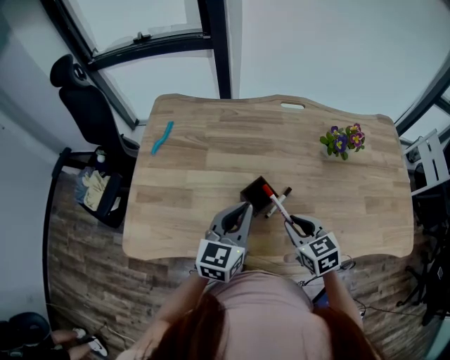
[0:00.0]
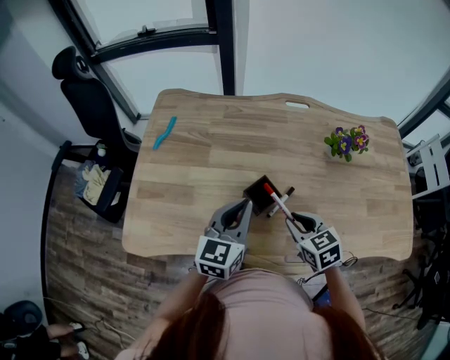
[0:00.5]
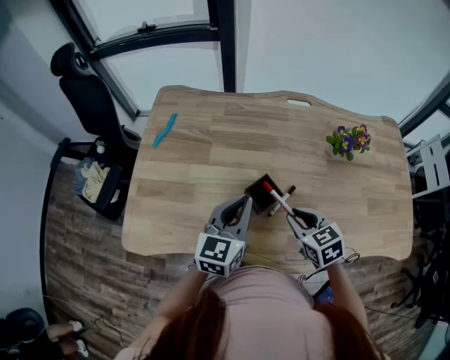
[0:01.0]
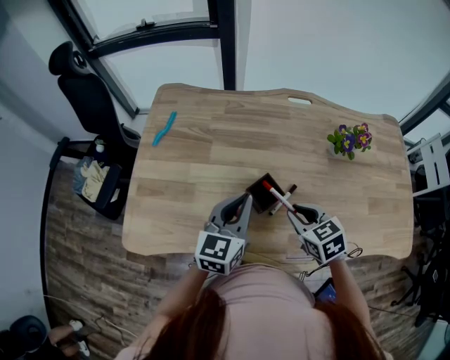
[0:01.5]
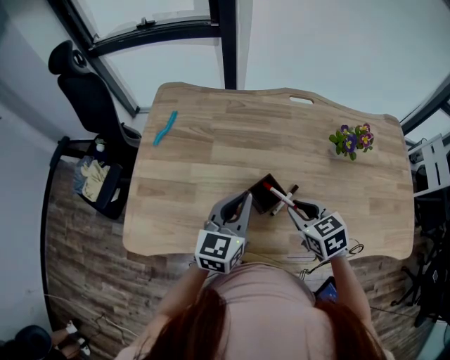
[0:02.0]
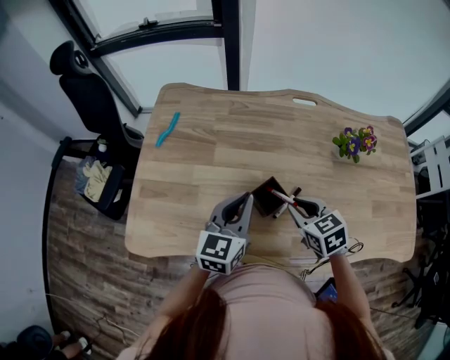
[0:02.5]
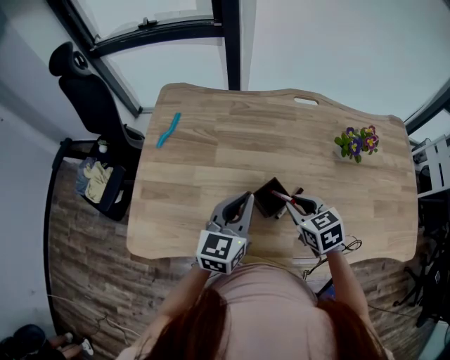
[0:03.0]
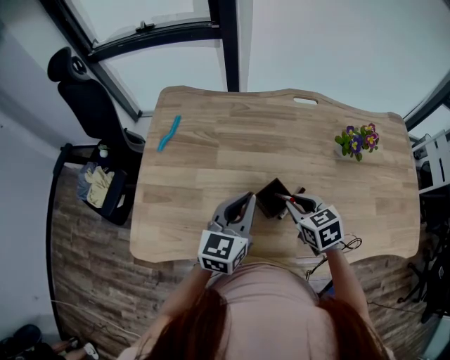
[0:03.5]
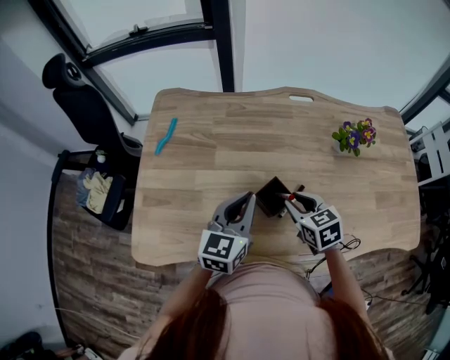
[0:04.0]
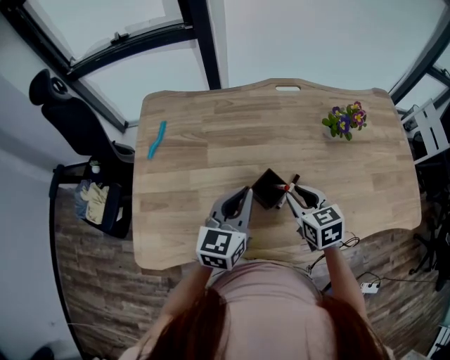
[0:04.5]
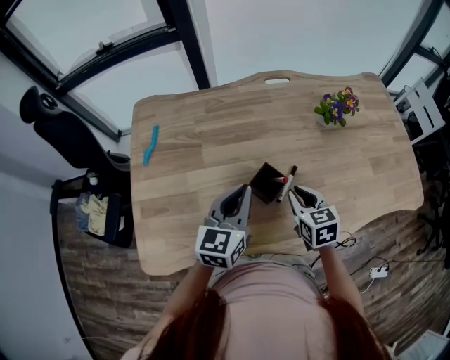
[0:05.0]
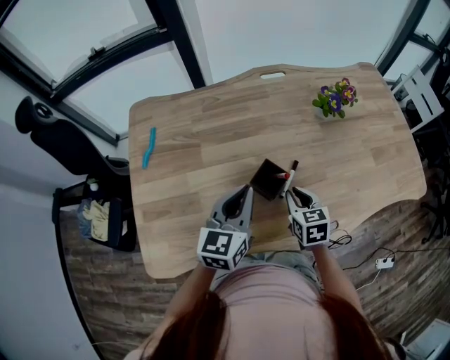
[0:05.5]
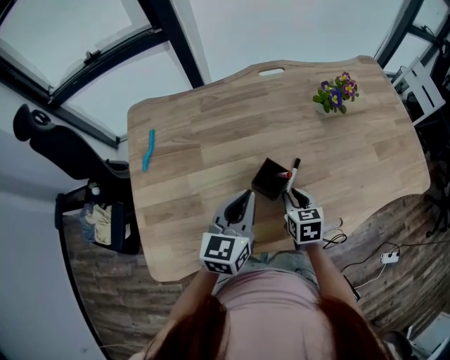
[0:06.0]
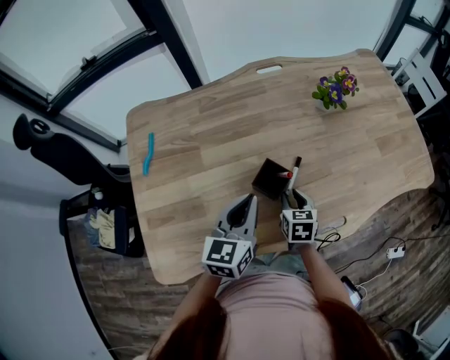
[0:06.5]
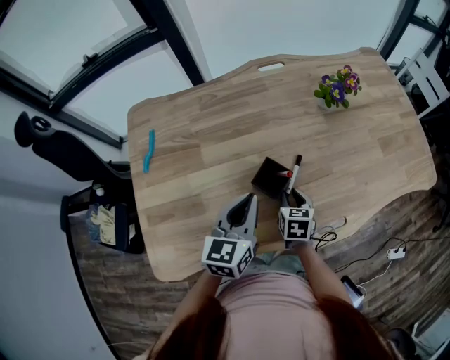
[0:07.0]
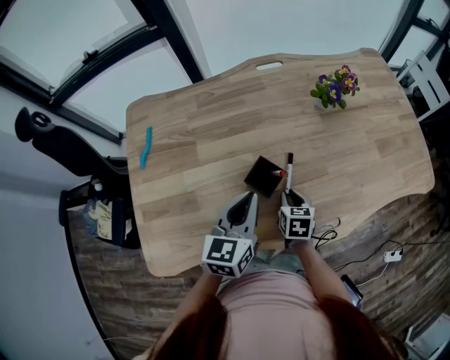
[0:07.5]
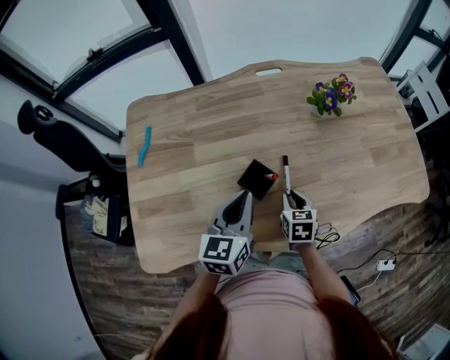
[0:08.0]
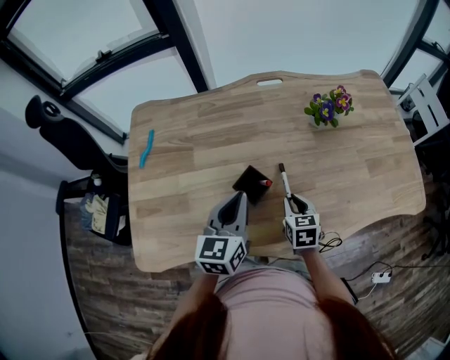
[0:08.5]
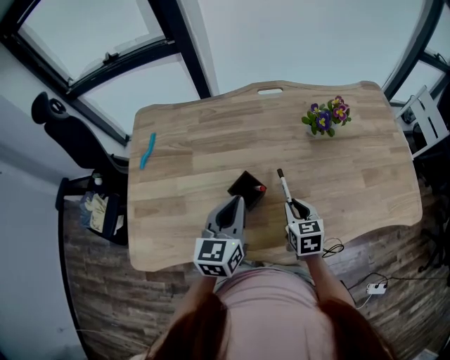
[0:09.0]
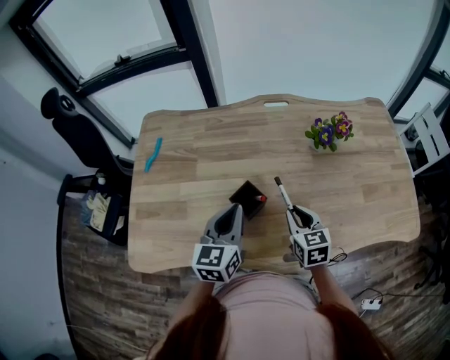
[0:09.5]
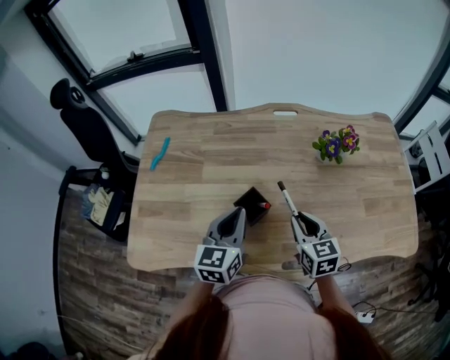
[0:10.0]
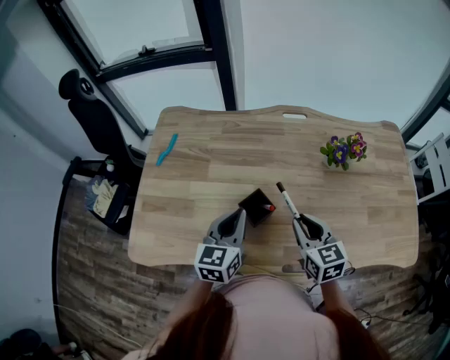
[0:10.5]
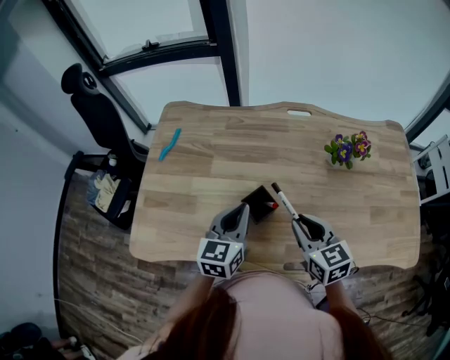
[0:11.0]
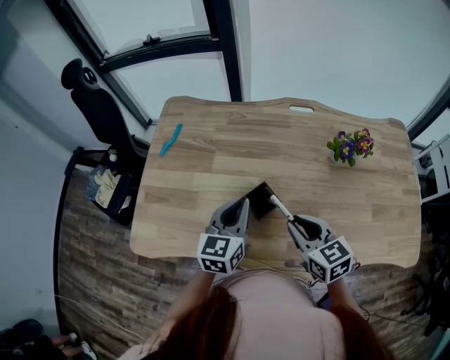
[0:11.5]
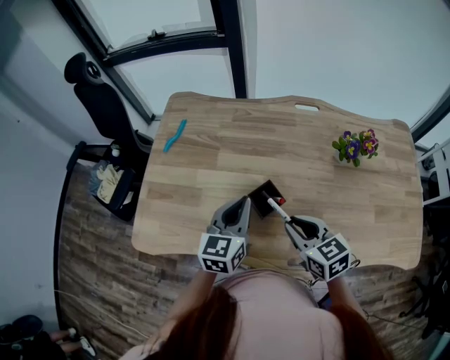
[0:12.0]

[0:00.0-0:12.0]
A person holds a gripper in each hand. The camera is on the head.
0:00.0 to 0:02.0: The grippers stay close to where they were, moving slightly.
0:02.0 to 0:04.0: There are only small adjustments of the grippers.
0:04.0 to 0:06.0: The right gripper travels downward by roughly 10 cm, and swivels roughly 30 degrees.
0:06.0 to 0:08.0: There are only small adjustments of the grippers.
0:08.0 to 0:10.0: The right gripper heads upward, covering roughly 15 cm, and swivels about 30 degrees.
0:10.0 to 0:12.0: The right gripper goes about 5 cm to the left, and changes its angle by approximately 20 degrees.

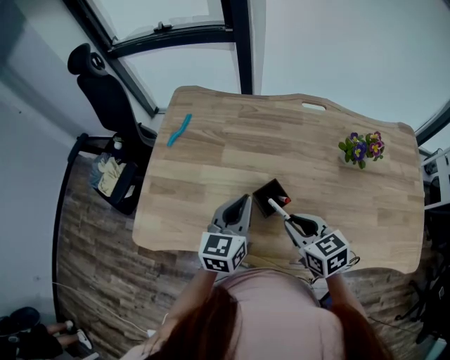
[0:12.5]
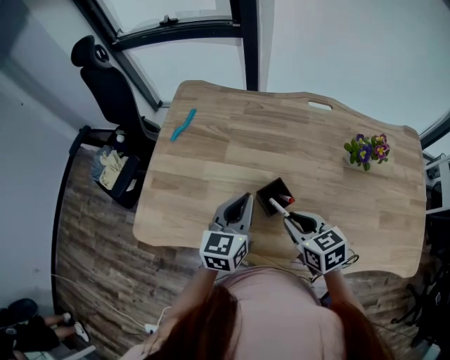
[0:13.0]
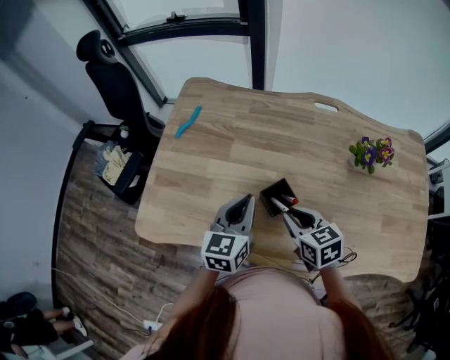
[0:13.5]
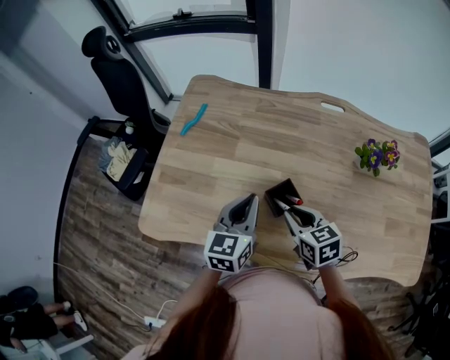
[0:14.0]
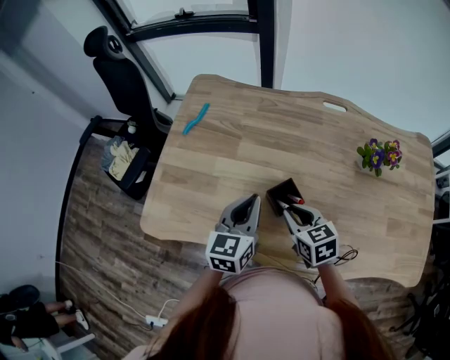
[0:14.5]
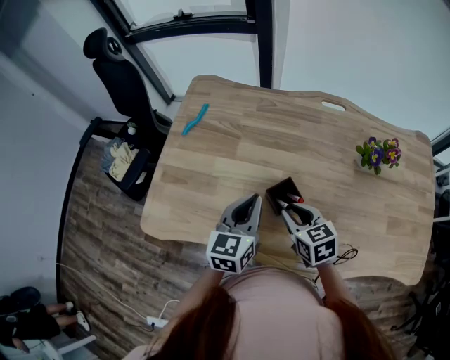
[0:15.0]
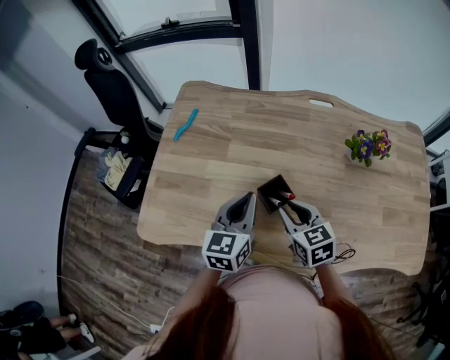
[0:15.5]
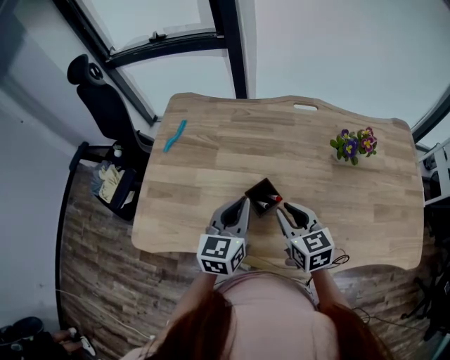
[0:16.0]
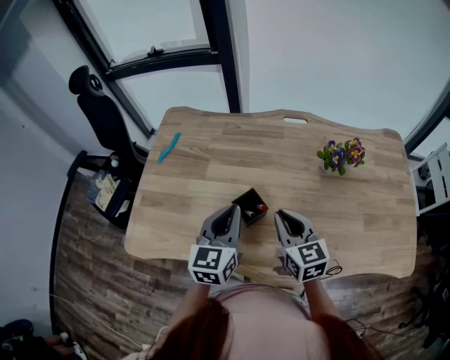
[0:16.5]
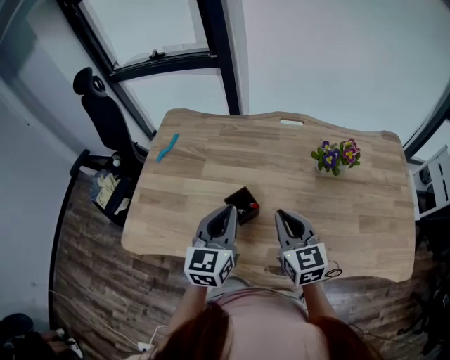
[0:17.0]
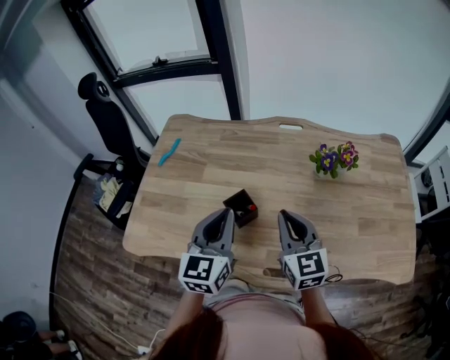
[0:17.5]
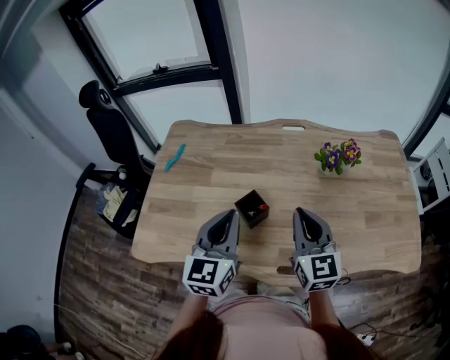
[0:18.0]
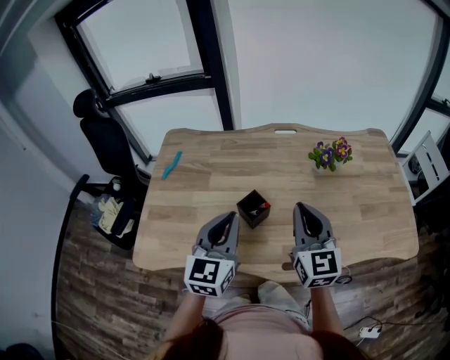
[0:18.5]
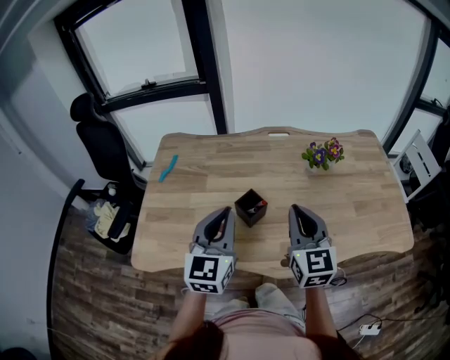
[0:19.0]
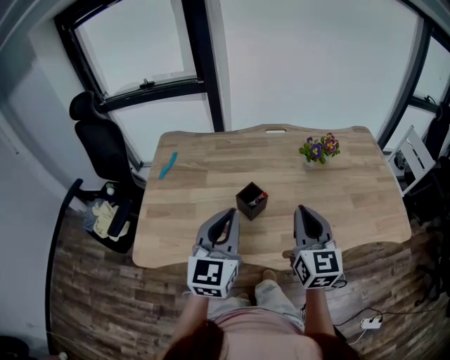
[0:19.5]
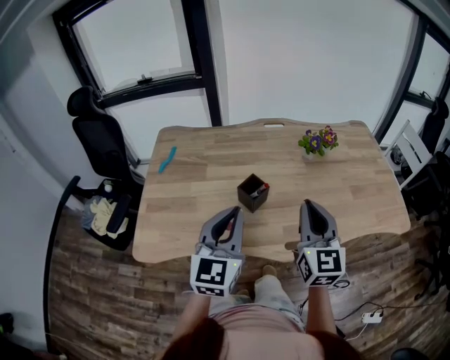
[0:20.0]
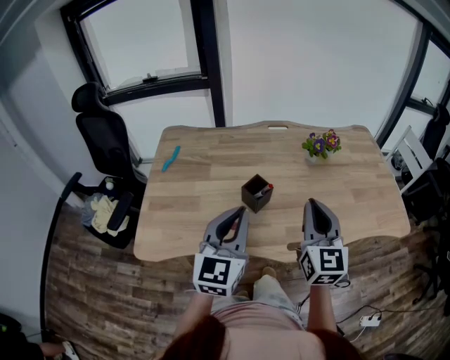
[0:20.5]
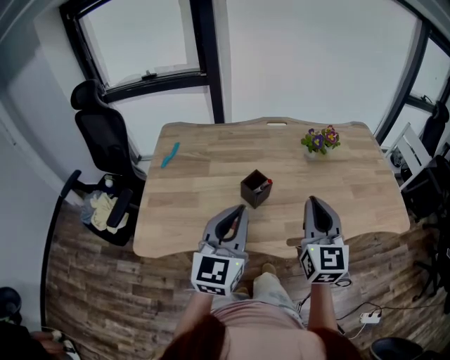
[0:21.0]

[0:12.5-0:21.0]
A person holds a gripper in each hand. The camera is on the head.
0:12.5 to 0:14.5: The right gripper shifts by roughly 5 cm.
0:14.5 to 0:16.5: The right gripper heads upward and to the right, covering some 10 cm, and turns by about 20 degrees. The left gripper heads upward and to the right, covering roughly 5 cm.
0:16.5 to 0:19.0: Both grippers move upward and backward, approximately 10 cm. The right gripper swivels approximately 30 degrees.
0:19.0 to 0:21.0: Both grippers travel together backward, some 10 cm.

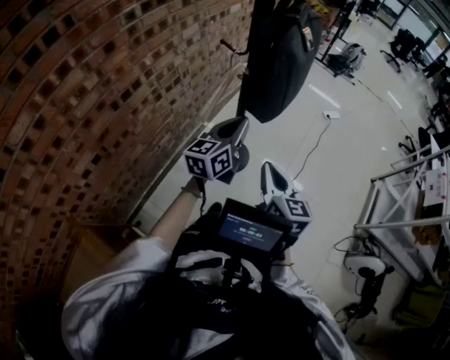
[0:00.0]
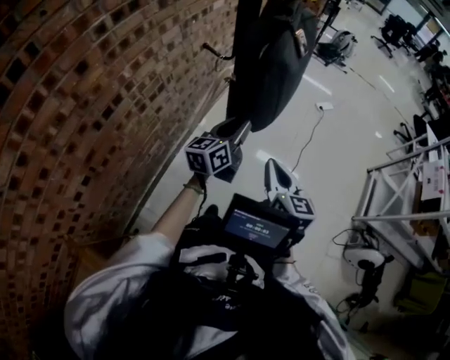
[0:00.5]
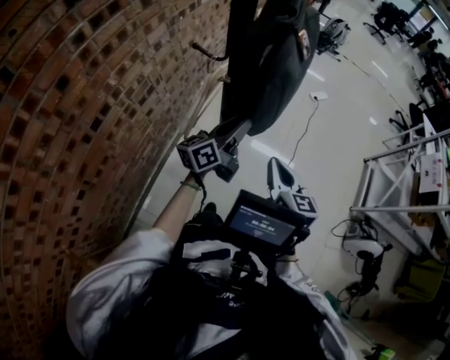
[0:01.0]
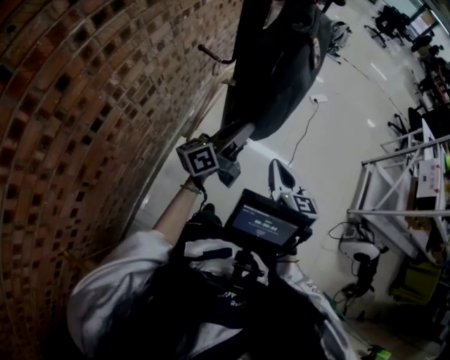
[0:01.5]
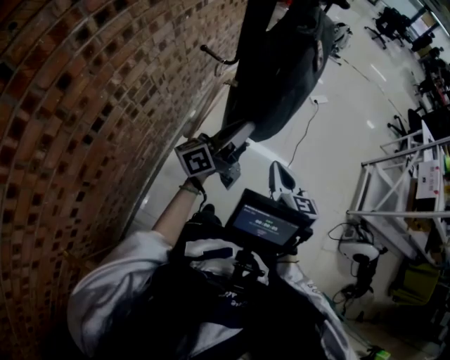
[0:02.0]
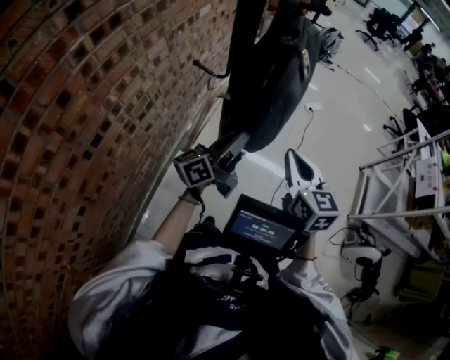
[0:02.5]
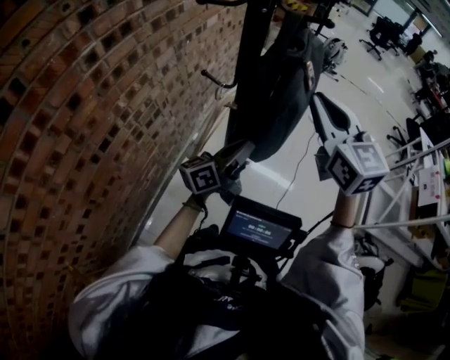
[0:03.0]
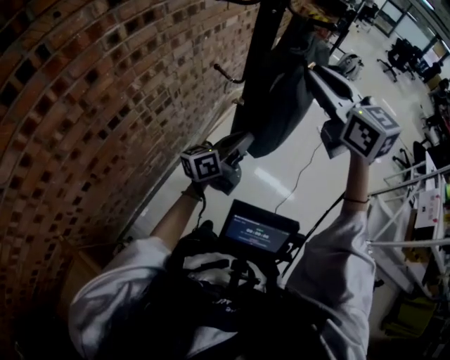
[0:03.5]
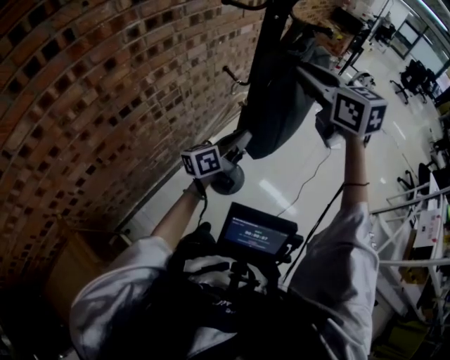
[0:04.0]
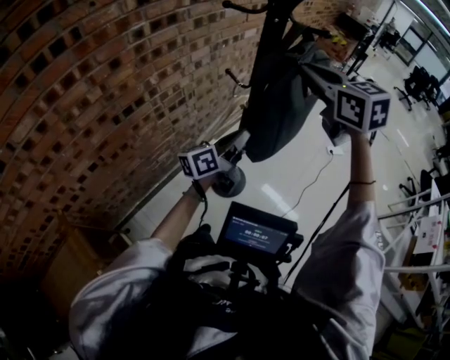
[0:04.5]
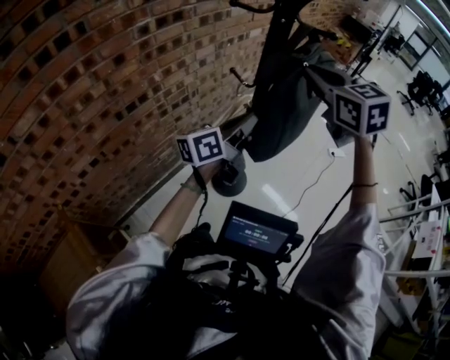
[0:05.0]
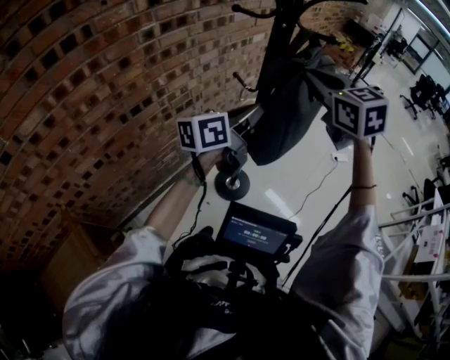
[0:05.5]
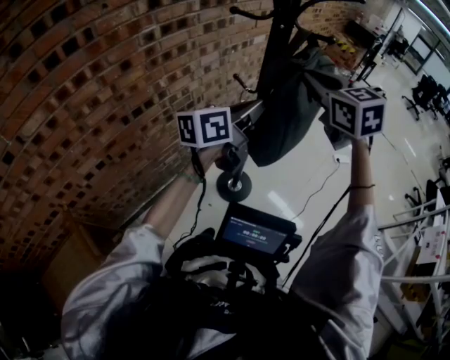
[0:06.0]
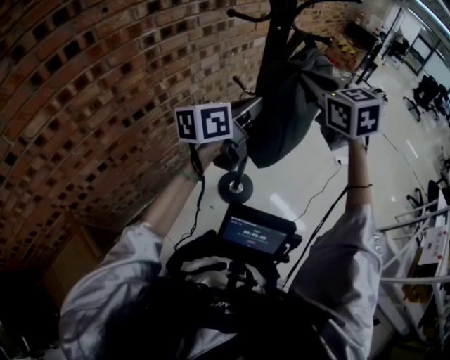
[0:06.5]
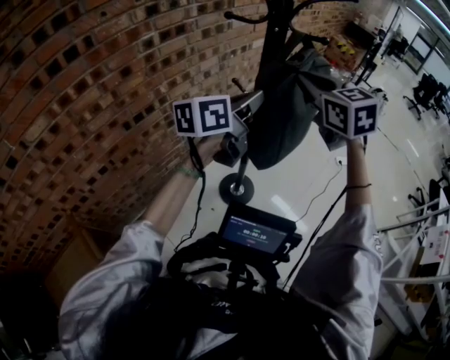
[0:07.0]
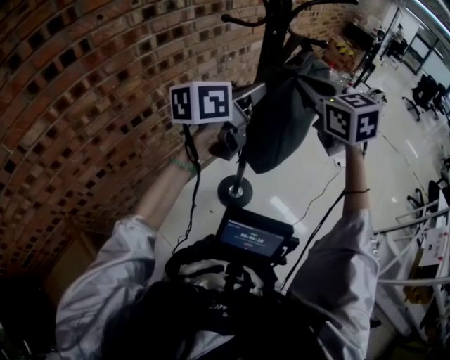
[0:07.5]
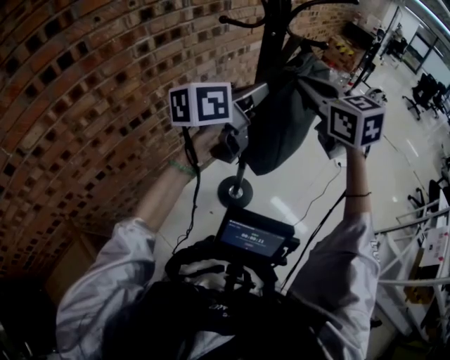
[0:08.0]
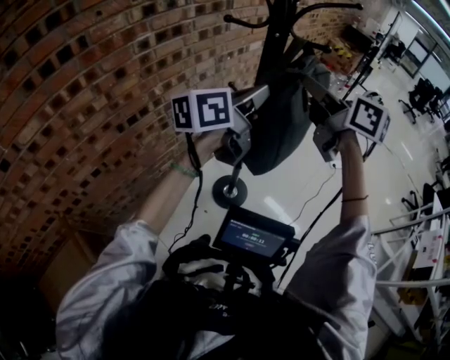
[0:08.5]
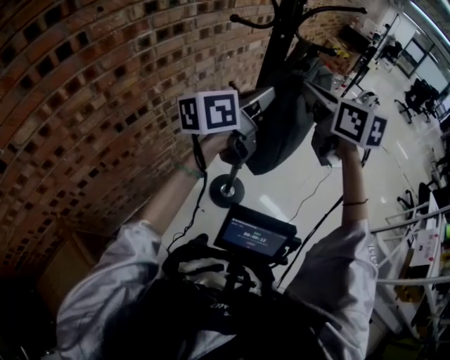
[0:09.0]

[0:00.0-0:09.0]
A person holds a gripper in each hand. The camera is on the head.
0:00.0 to 0:02.0: The grippers both shift forward by roughly 10 cm. The left gripper swivels approximately 50 degrees.
0:02.0 to 0:04.5: The left gripper changes its angle by approximately 20 degrees, while the right gripper is displaced upward by some 30 cm, swivels about 50 degrees, and opens, then closes again.
0:04.5 to 0:07.0: The left gripper heads upward, covering approximately 15 cm.
0:07.0 to 0:09.0: The right gripper swivels approximately 20 degrees.
